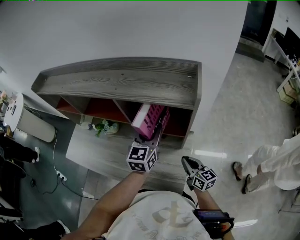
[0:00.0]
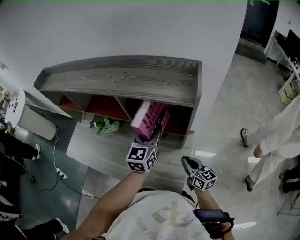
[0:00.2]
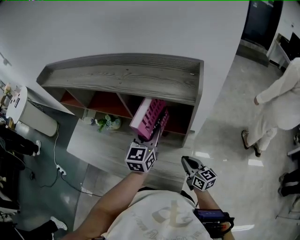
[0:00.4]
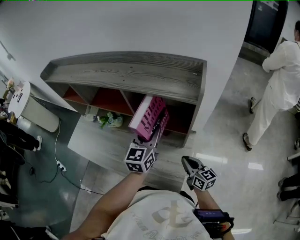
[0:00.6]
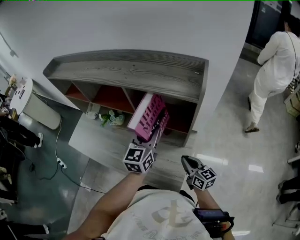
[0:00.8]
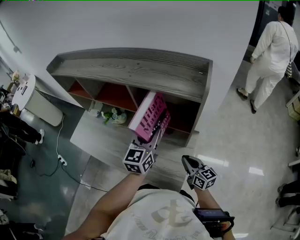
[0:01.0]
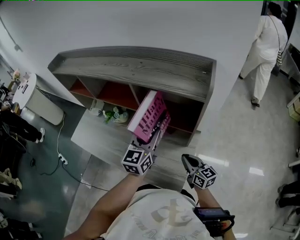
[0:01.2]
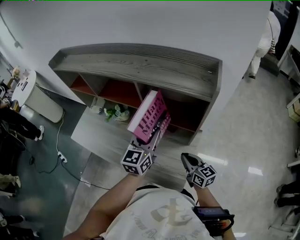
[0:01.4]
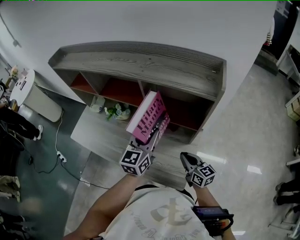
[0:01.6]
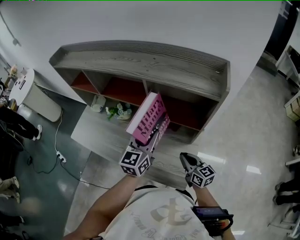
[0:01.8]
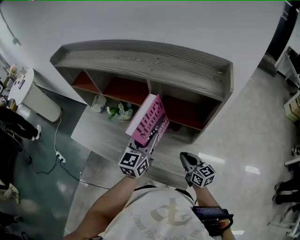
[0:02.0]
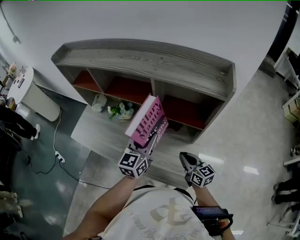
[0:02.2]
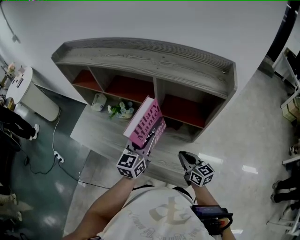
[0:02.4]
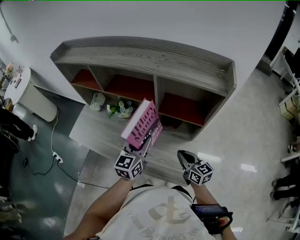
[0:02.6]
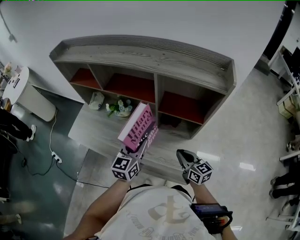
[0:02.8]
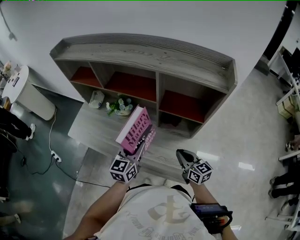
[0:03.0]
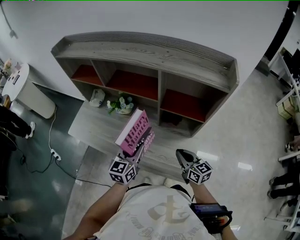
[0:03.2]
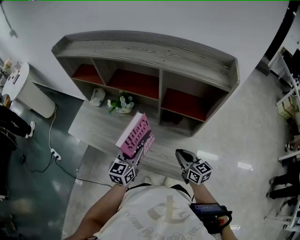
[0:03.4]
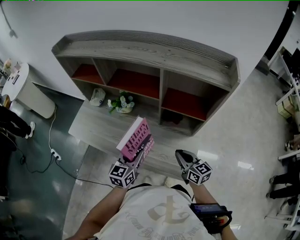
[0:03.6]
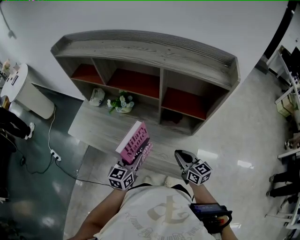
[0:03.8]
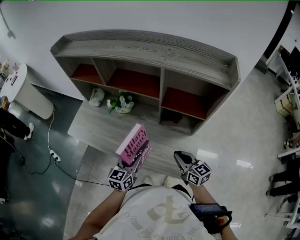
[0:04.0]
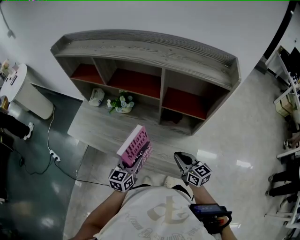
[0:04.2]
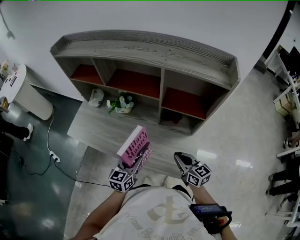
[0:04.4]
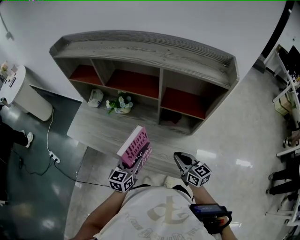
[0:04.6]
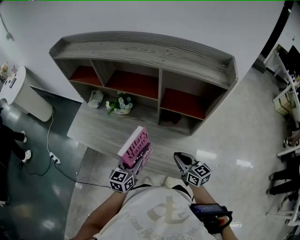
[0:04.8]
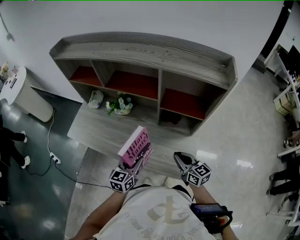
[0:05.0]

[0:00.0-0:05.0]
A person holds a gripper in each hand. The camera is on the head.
0:00.0 to 0:01.6: The left gripper moves to the left and backward, some 10 cm; the right gripper heads to the left, covering roughly 5 cm.
0:01.6 to 0:03.4: The right gripper goes approximately 10 cm to the left. Meanwhile the left gripper moves to the left, downward and backward, approximately 20 cm.
0:03.4 to 0:05.0: The left gripper changes place by approximately 5 cm.

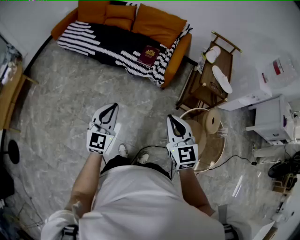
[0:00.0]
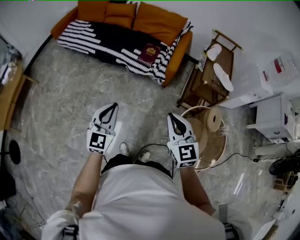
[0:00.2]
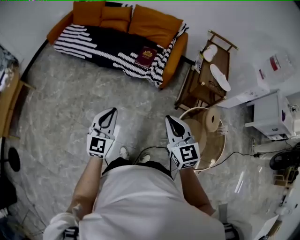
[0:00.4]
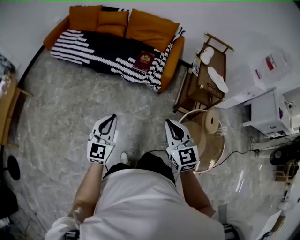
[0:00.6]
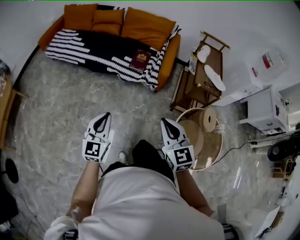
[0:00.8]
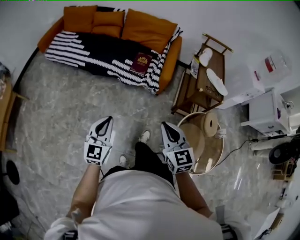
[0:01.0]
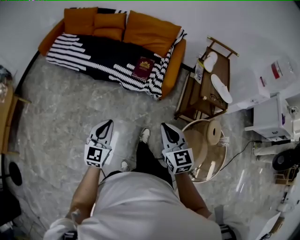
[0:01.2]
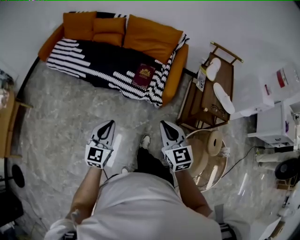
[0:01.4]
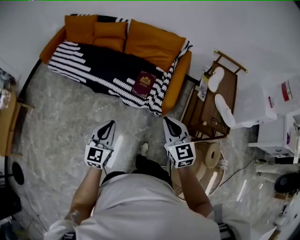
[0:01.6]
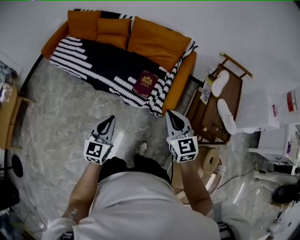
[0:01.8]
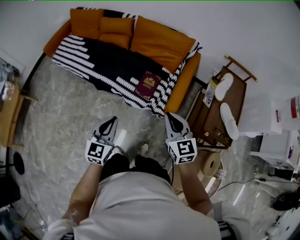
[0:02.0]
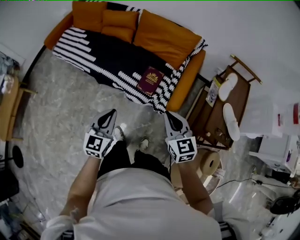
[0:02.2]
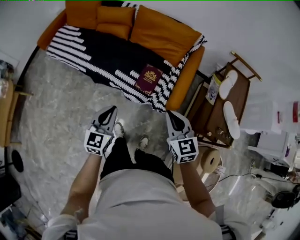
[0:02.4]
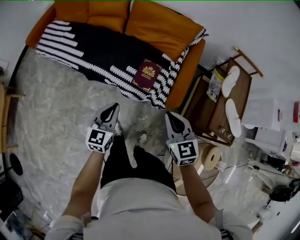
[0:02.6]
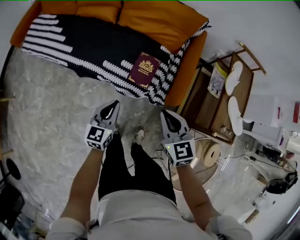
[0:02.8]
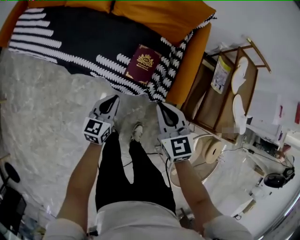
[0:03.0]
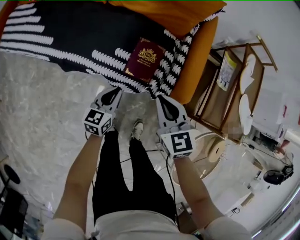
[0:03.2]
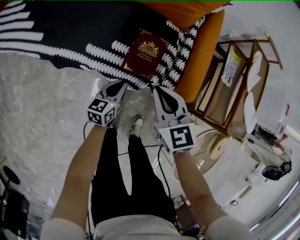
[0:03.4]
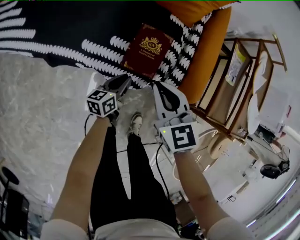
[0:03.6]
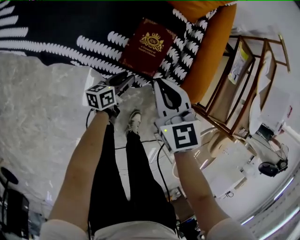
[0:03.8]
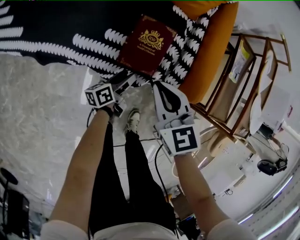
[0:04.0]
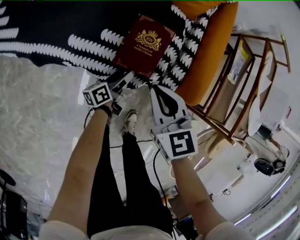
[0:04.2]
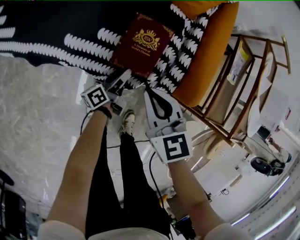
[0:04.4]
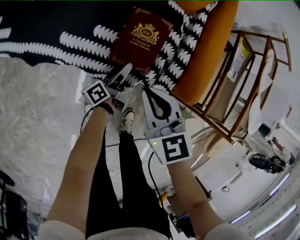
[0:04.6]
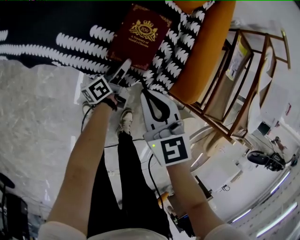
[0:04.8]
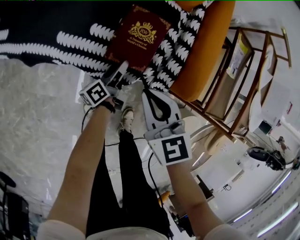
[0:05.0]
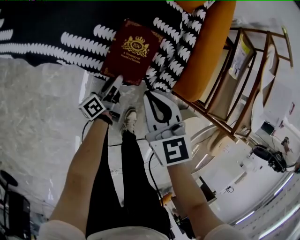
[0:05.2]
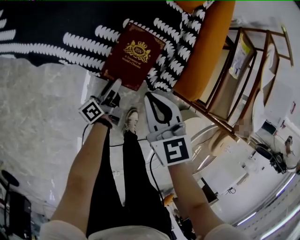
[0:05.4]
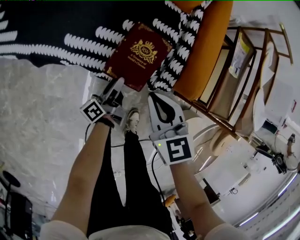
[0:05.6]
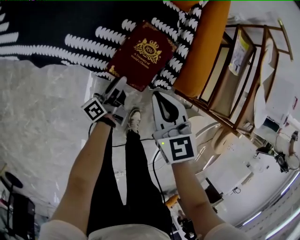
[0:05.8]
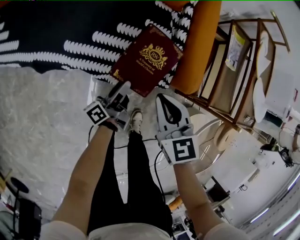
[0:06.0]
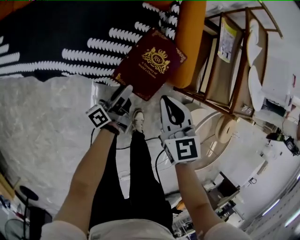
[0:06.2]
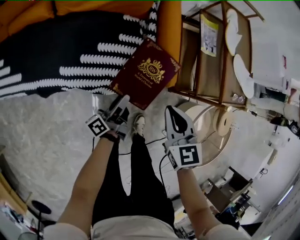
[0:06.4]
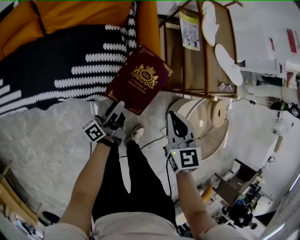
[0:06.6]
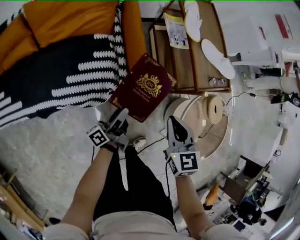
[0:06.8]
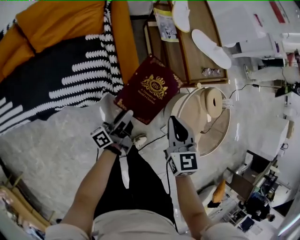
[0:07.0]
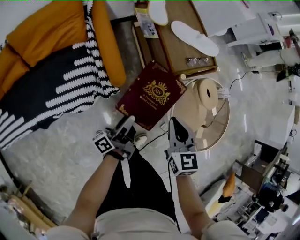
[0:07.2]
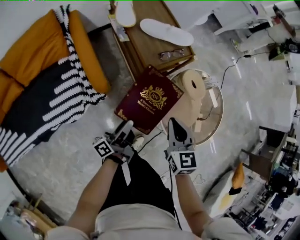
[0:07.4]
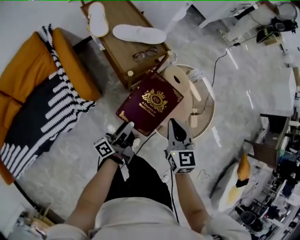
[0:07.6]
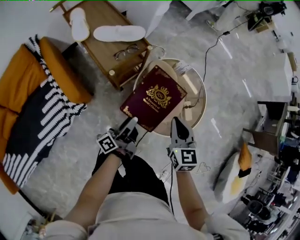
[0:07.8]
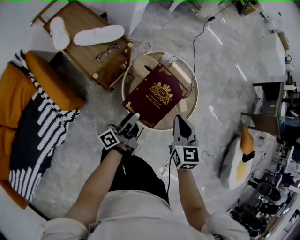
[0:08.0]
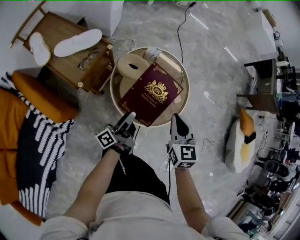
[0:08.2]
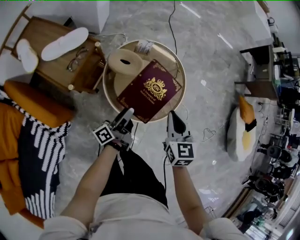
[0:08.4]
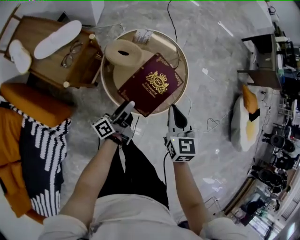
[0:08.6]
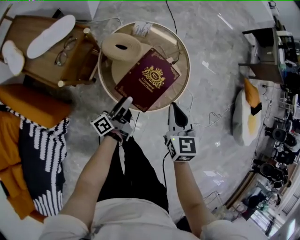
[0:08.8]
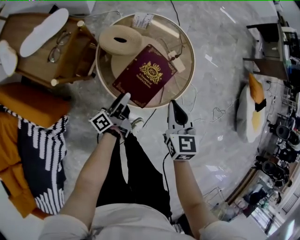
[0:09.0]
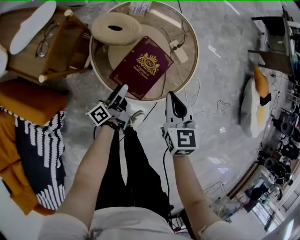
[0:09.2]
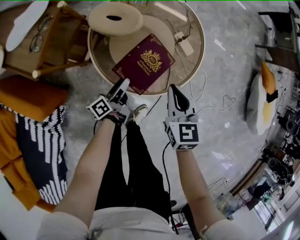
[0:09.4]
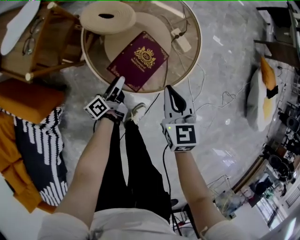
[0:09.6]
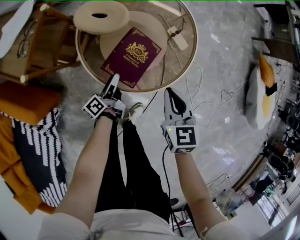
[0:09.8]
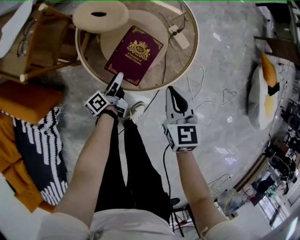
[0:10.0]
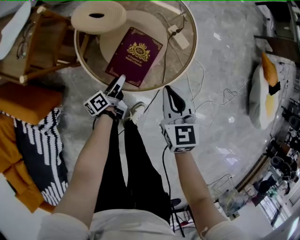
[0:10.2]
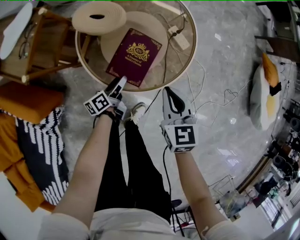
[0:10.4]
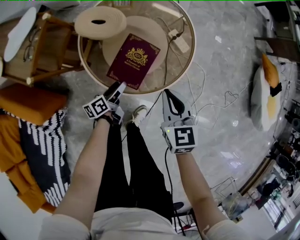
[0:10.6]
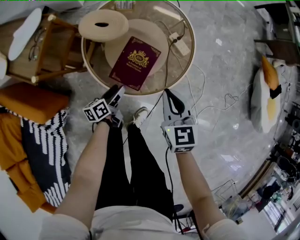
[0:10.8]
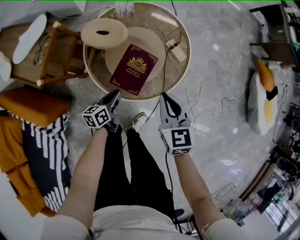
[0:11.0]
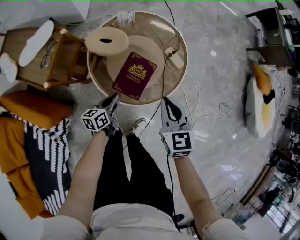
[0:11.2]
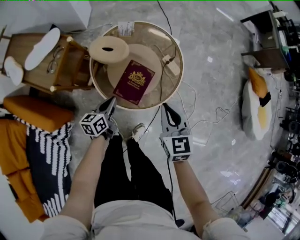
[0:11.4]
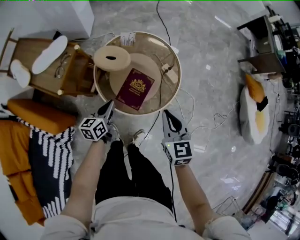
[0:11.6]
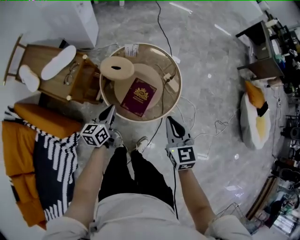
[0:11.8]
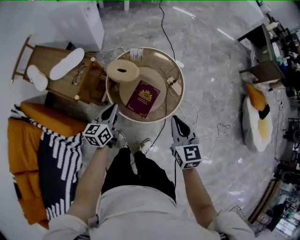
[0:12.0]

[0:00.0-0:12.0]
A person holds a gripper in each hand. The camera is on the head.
0:00.0 to 0:01.6: The two grippers go approximately 30 cm forward.
0:01.6 to 0:03.0: The left gripper shifts roughly 40 cm downward and forward, and changes its angle by roughly 30 degrees; the right gripper travels forward and downward by some 35 cm.
0:03.0 to 0:04.4: Both grippers travel together downward, roughly 25 cm. The left gripper rotates around the line of its fingers by approximately 60 degrees, counterclockwise from behind, and opens up.
0:04.4 to 0:06.0: The left gripper shifts about 10 cm upward and backward, while the right gripper is displaced to the right by roughly 5 cm.
0:06.0 to 0:07.6: The two grippers travel together, about 50 cm. The left gripper turns by approximately 50 degrees. The right gripper turns by roughly 60 degrees.
0:07.6 to 0:09.0: The right gripper ends up roughly 20 cm from where it was, and swivels about 40 degrees; the left gripper ends up approximately 25 cm from where it was, and turns by approximately 30 degrees.
0:09.0 to 0:10.4: The two grippers go roughly 15 cm downward and to the right. The left gripper changes its angle by some 30 degrees.
0:10.4 to 0:12.0: Both grippers move upward, some 30 cm. The left gripper rotates around the line of its fingers by some 40 degrees, clockwise from behind, and closes its fingers.

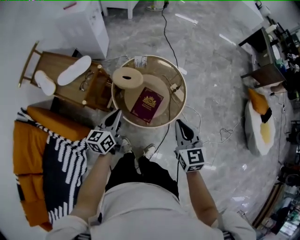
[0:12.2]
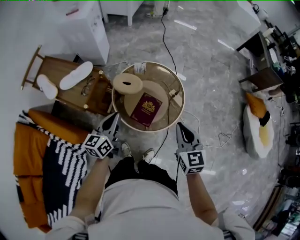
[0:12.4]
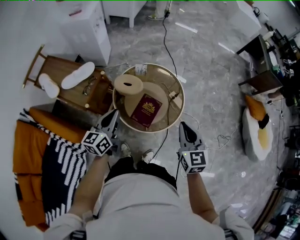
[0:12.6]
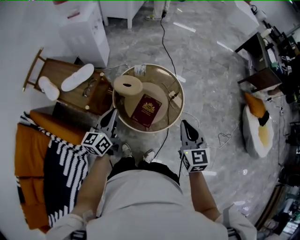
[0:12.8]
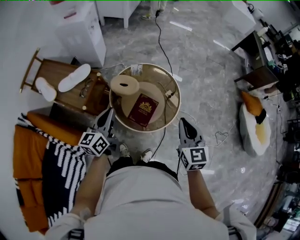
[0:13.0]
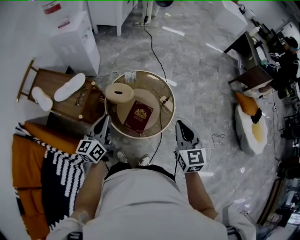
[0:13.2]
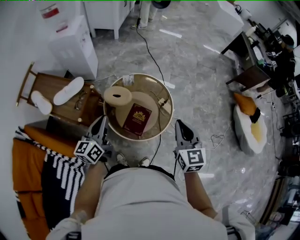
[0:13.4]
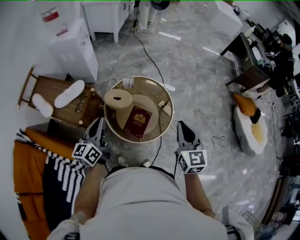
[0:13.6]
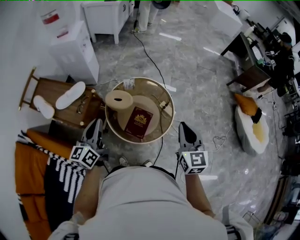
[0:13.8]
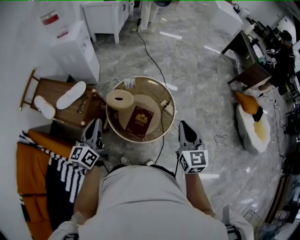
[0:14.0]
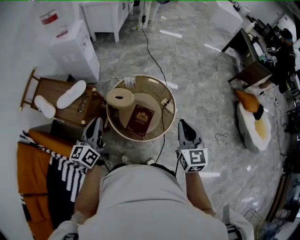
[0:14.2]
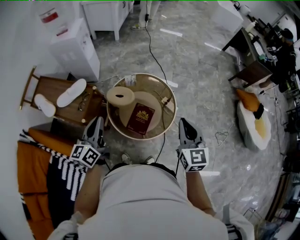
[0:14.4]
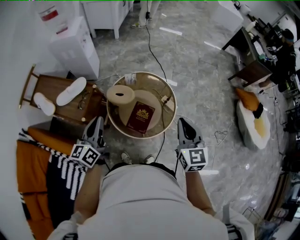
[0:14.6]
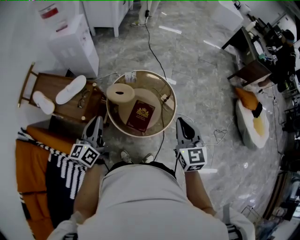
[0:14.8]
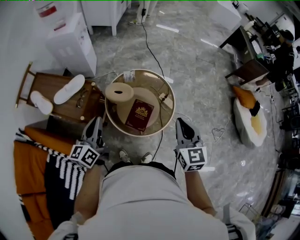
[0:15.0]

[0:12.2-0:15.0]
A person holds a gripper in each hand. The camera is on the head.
0:12.2 to 0:13.6: Both grippers move upward, roughly 10 cm.
0:13.6 to 0:15.0: There are only small adjustments of the grippers.

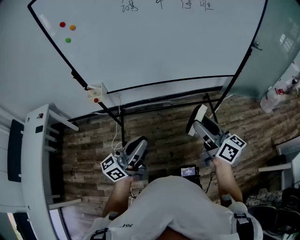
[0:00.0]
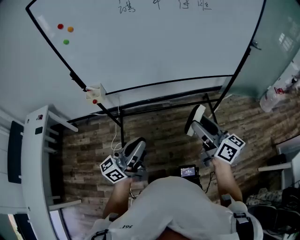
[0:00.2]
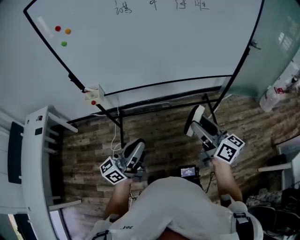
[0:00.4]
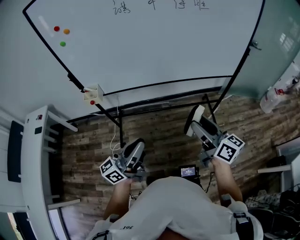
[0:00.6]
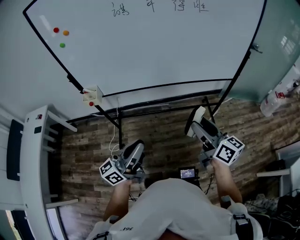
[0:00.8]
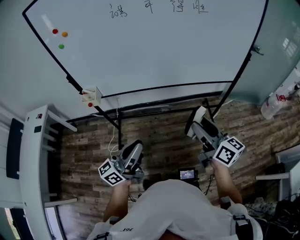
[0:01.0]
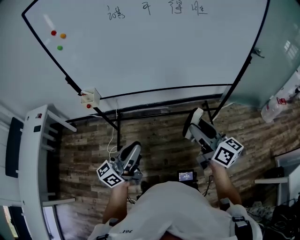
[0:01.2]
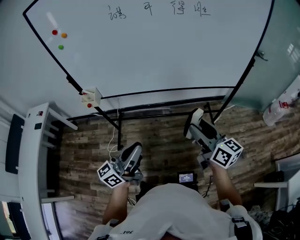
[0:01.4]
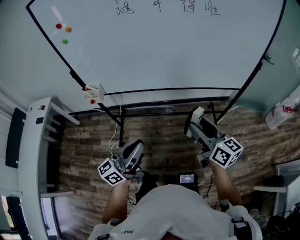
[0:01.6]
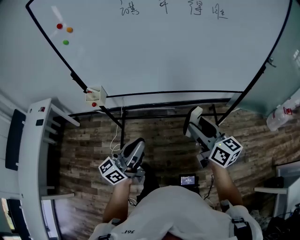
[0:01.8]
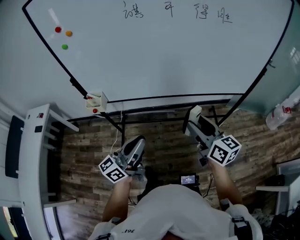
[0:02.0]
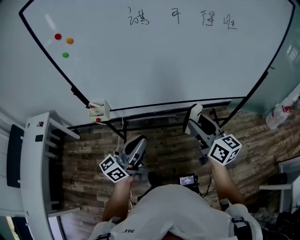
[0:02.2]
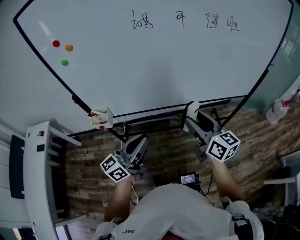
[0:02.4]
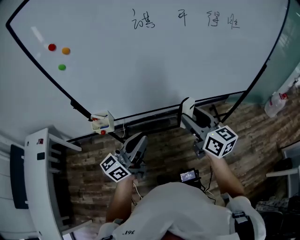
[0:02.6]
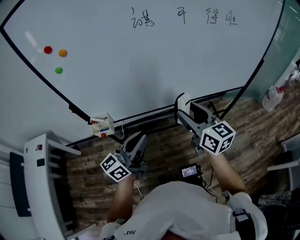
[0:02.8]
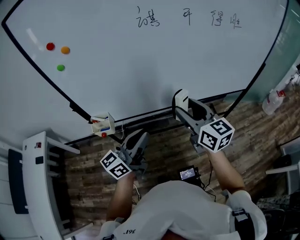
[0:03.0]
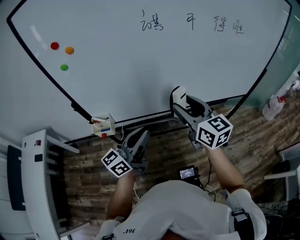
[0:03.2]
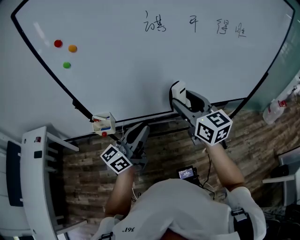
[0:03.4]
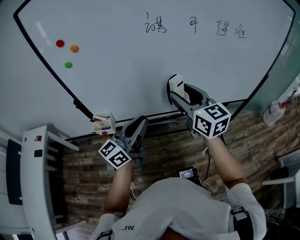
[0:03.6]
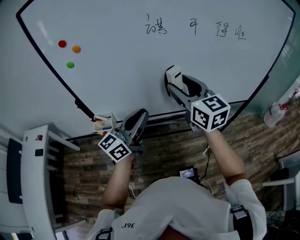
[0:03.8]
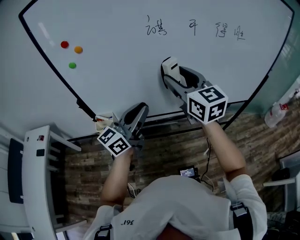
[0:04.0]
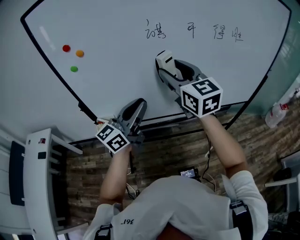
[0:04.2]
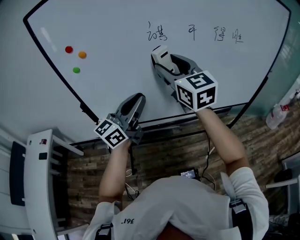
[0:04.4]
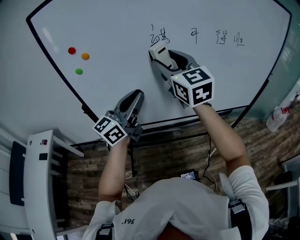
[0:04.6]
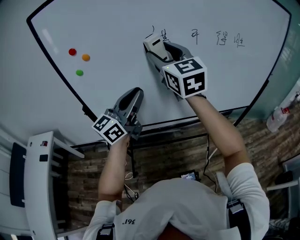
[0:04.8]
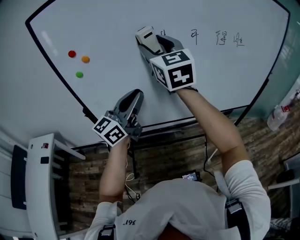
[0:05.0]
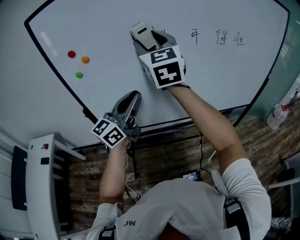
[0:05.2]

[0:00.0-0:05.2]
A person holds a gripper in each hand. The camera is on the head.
0:00.0 to 0:01.8: The grippers both shift forward by some 10 cm.
0:01.8 to 0:03.4: The left gripper heads forward and to the left, covering approximately 20 cm; the right gripper travels to the left, forward and upward by some 25 cm.
0:03.4 to 0:05.2: The left gripper moves upward and forward, about 15 cm. The right gripper heads upward, to the left and forward, covering about 30 cm, and changes its angle by some 30 degrees.
